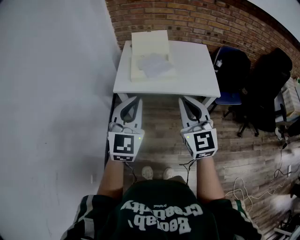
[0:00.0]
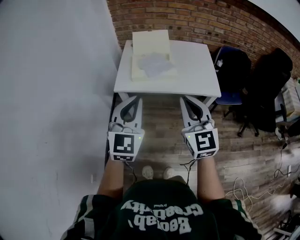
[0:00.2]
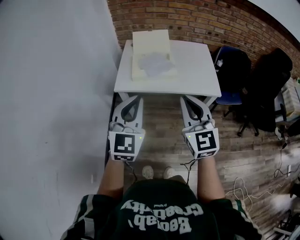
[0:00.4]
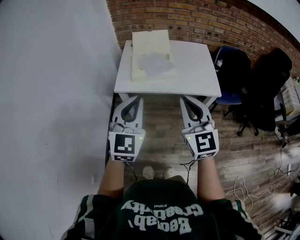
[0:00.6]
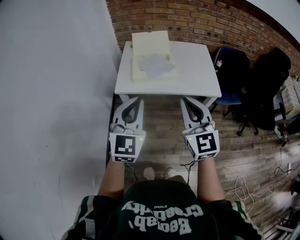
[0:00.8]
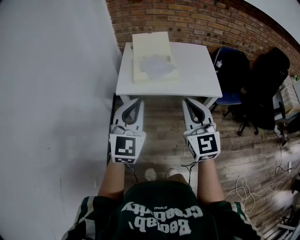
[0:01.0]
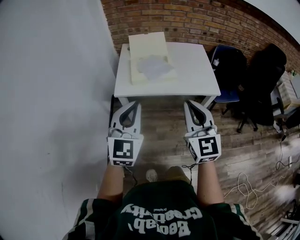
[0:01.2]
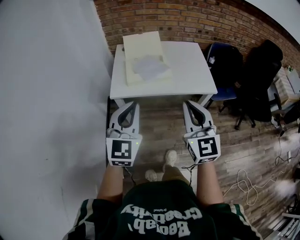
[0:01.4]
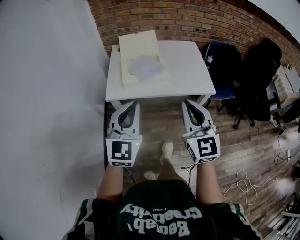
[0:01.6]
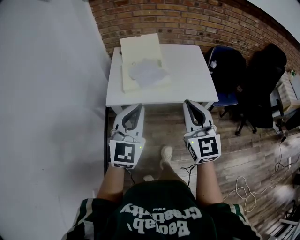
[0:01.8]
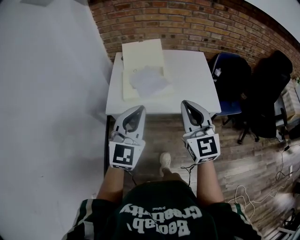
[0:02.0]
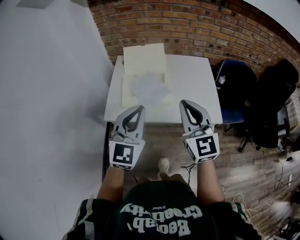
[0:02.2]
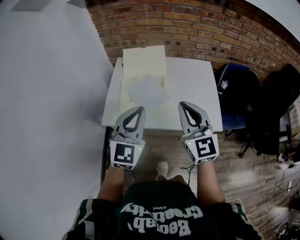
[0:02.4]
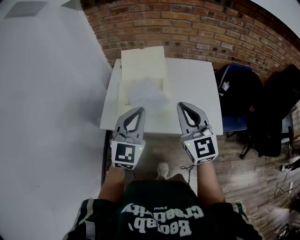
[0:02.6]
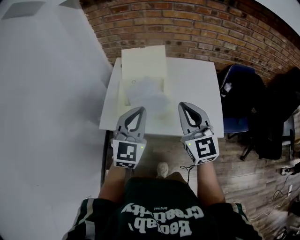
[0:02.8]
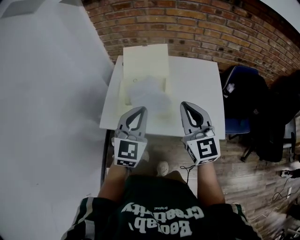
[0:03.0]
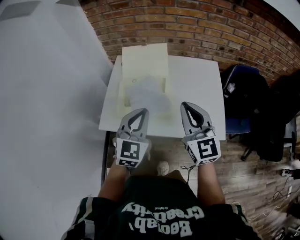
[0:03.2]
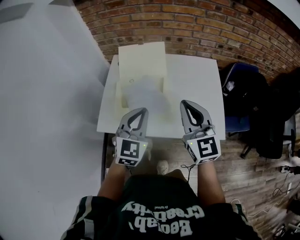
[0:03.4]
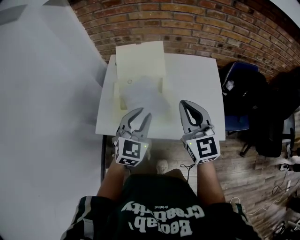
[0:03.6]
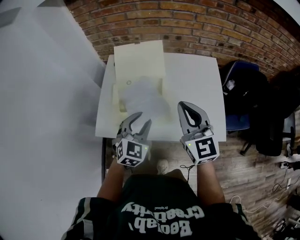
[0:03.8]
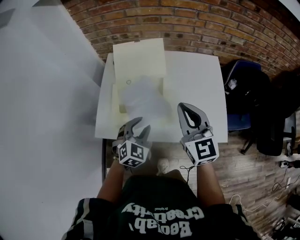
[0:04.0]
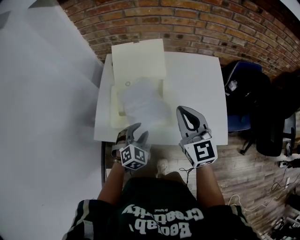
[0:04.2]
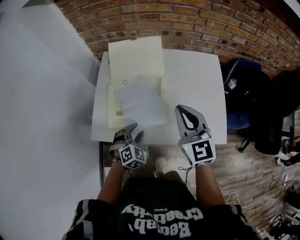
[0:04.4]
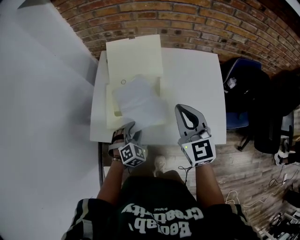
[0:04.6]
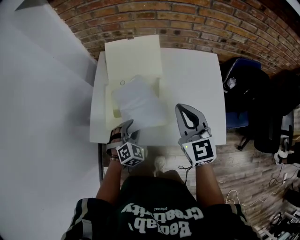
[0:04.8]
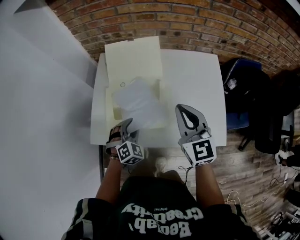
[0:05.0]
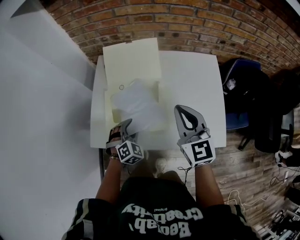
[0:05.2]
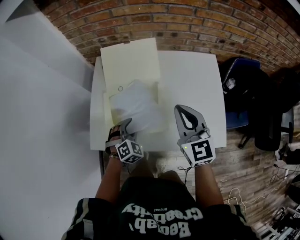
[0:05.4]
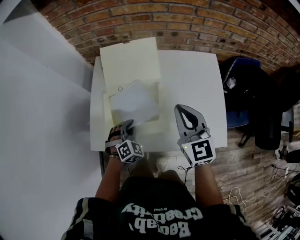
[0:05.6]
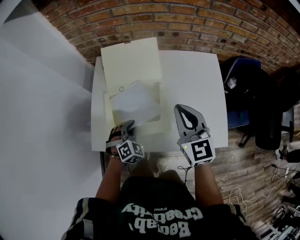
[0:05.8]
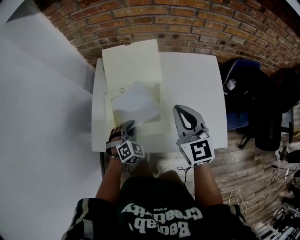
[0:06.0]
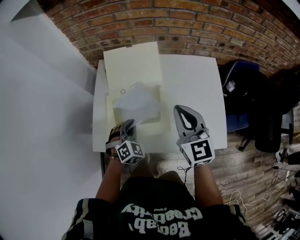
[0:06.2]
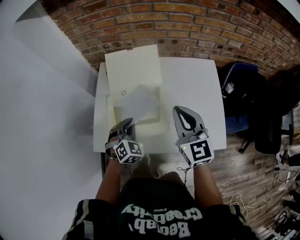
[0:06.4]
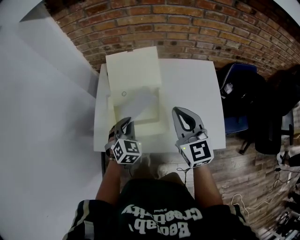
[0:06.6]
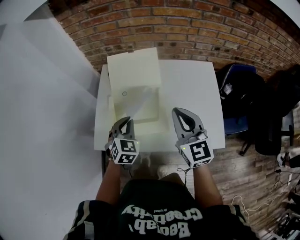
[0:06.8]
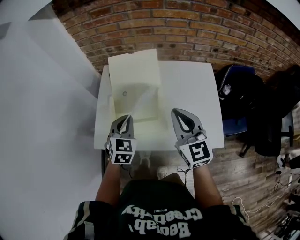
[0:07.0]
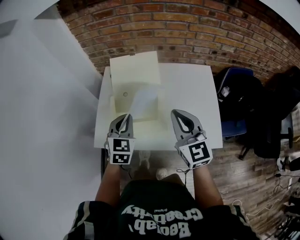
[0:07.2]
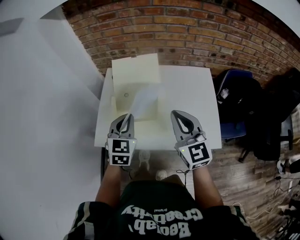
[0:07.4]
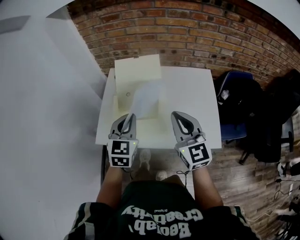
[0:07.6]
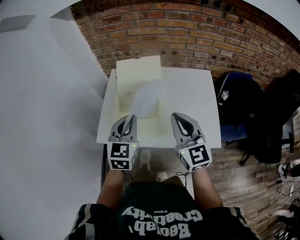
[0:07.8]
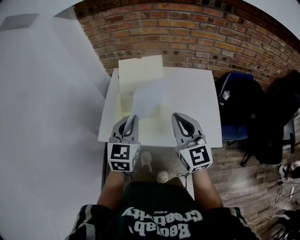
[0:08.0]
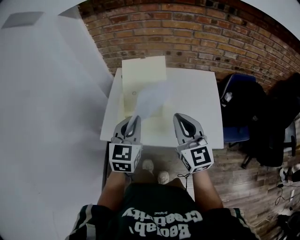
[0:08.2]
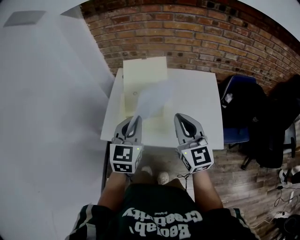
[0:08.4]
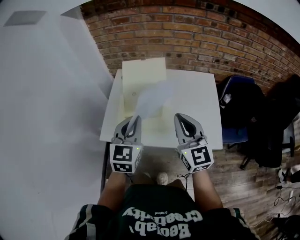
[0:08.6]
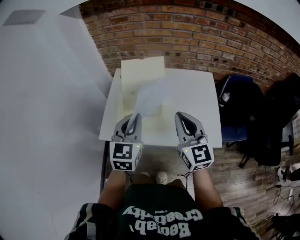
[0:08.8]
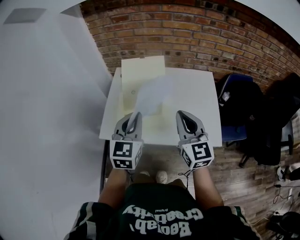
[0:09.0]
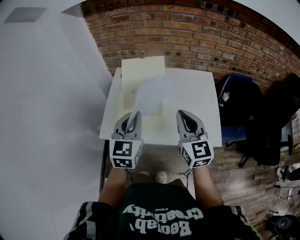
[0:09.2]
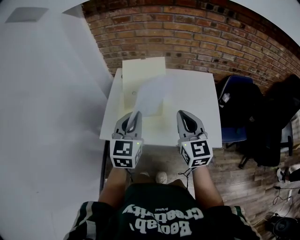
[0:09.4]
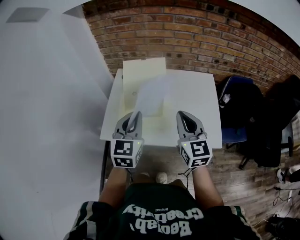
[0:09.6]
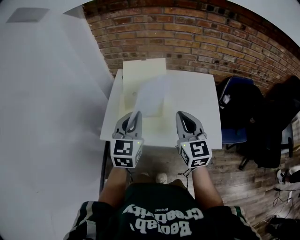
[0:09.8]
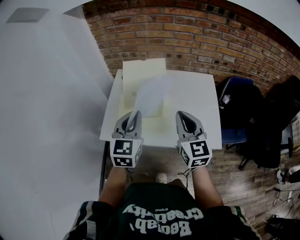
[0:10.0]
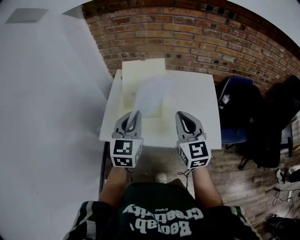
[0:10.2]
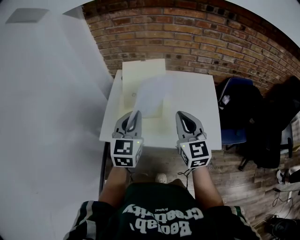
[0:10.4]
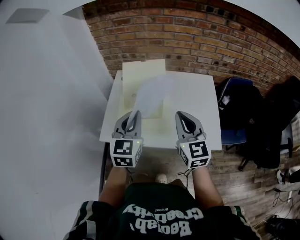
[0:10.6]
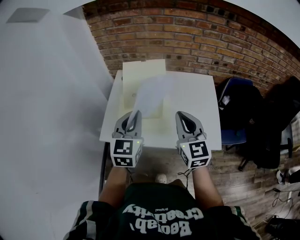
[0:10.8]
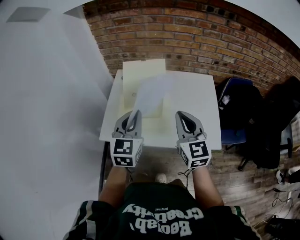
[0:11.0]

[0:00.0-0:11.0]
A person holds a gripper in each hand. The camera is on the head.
0:00.0 to 0:01.6: There are only small adjustments of the grippers.
0:01.6 to 0:03.2: The left gripper shifts about 30 cm forward and to the right, while the right gripper moves forward, about 30 cm.
0:03.2 to 0:04.8: The right gripper moves forward and downward, approximately 10 cm, while the left gripper goes some 20 cm downward, angles its fingers downward, by approximately 30 degrees, and opens its fingers.
0:04.8 to 0:06.2: The left gripper moves forward, about 5 cm, and closes.
0:06.2 to 0:07.8: The right gripper goes roughly 15 cm backward and upward; the left gripper heads upward and backward, covering roughly 20 cm, and changes its angle by some 40 degrees.
0:07.8 to 0:09.4: The grippers stay close to where they were, moving slightly.
0:09.4 to 0:11.0: Both grippers stay put.

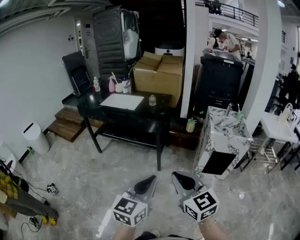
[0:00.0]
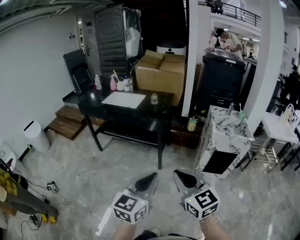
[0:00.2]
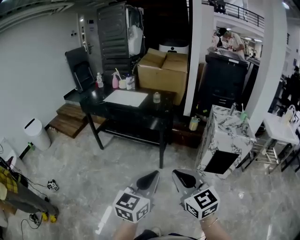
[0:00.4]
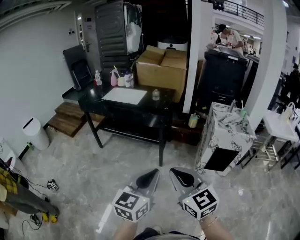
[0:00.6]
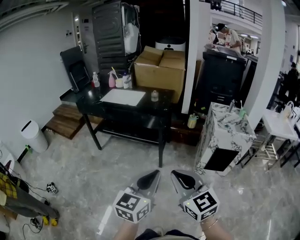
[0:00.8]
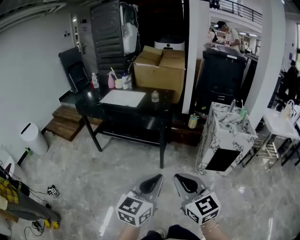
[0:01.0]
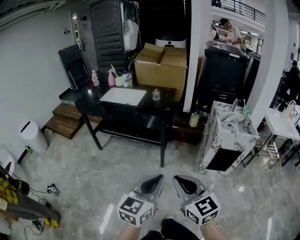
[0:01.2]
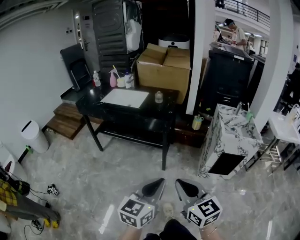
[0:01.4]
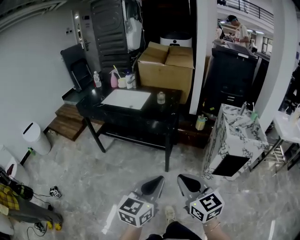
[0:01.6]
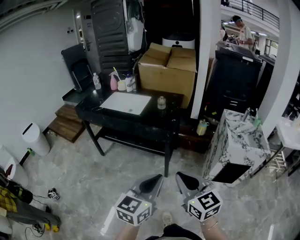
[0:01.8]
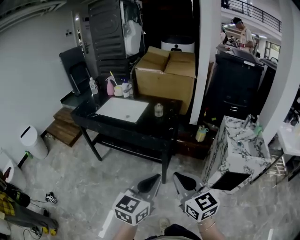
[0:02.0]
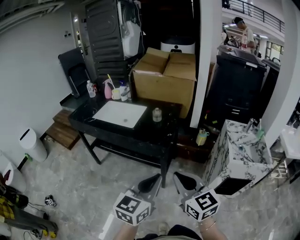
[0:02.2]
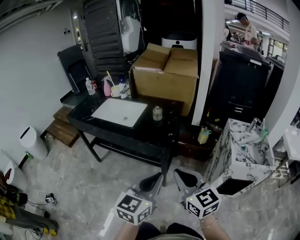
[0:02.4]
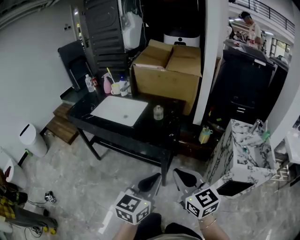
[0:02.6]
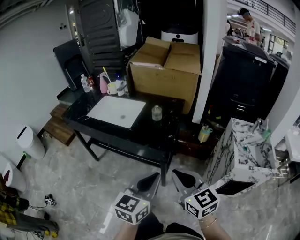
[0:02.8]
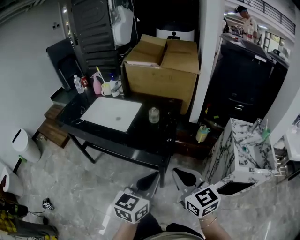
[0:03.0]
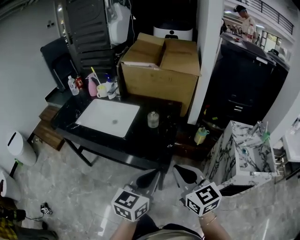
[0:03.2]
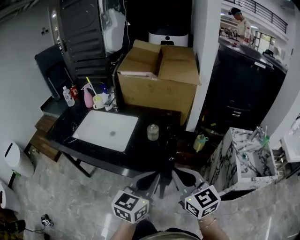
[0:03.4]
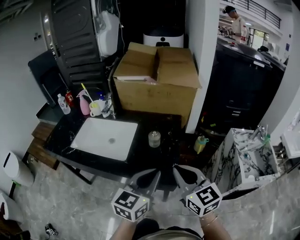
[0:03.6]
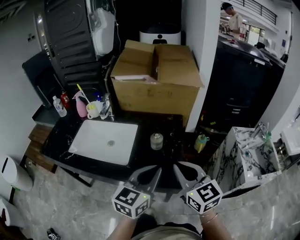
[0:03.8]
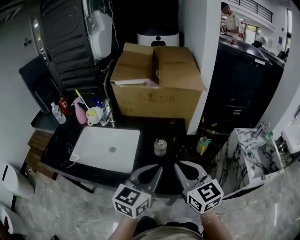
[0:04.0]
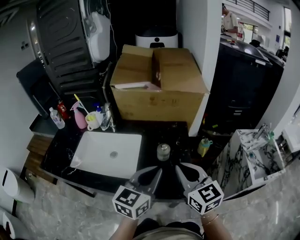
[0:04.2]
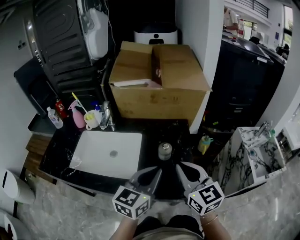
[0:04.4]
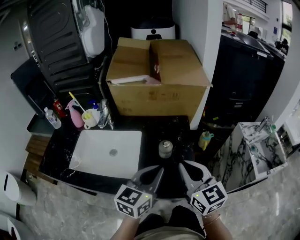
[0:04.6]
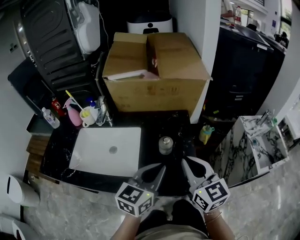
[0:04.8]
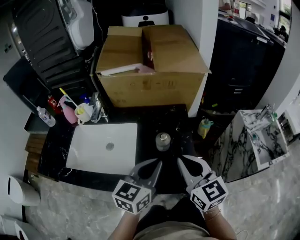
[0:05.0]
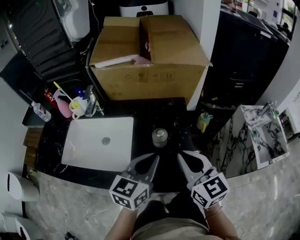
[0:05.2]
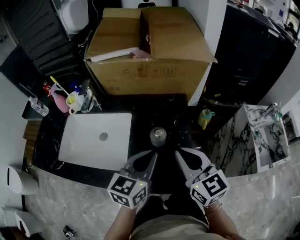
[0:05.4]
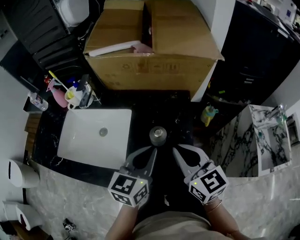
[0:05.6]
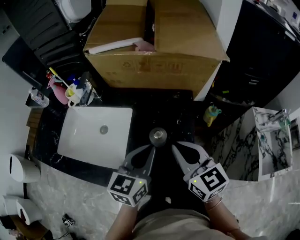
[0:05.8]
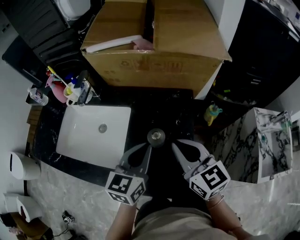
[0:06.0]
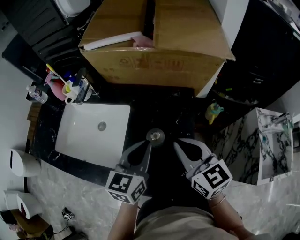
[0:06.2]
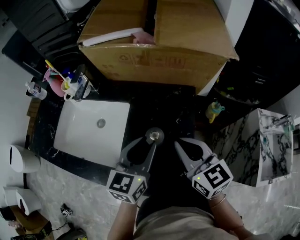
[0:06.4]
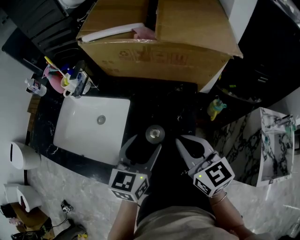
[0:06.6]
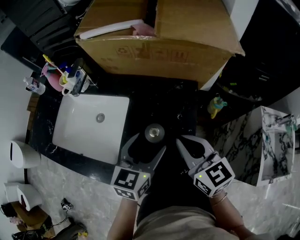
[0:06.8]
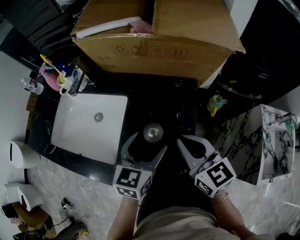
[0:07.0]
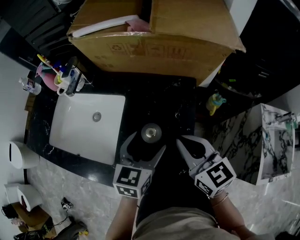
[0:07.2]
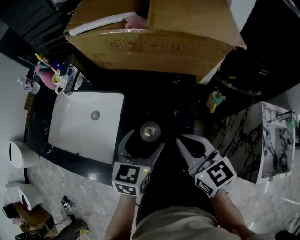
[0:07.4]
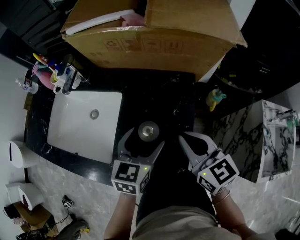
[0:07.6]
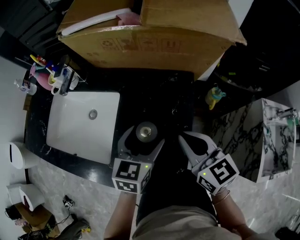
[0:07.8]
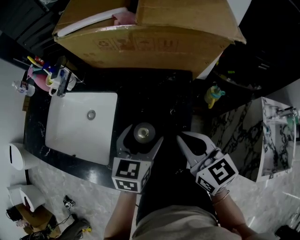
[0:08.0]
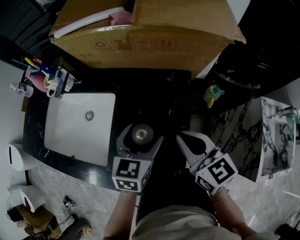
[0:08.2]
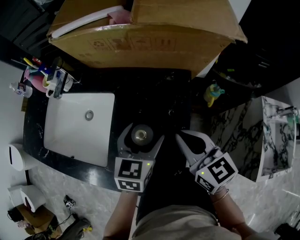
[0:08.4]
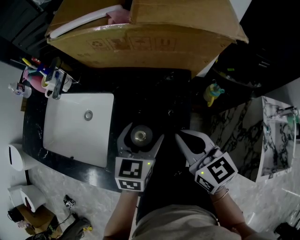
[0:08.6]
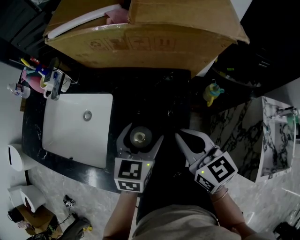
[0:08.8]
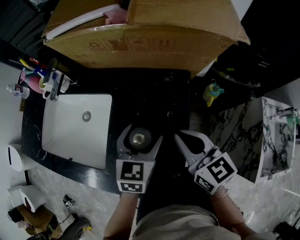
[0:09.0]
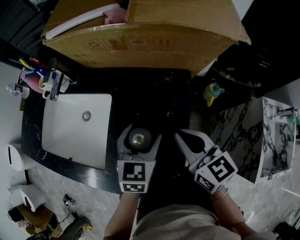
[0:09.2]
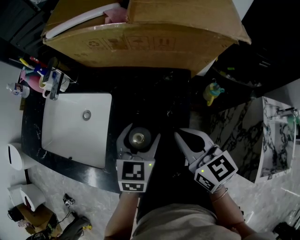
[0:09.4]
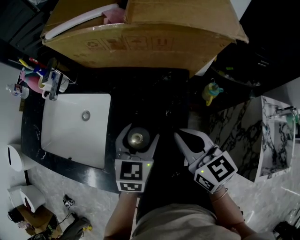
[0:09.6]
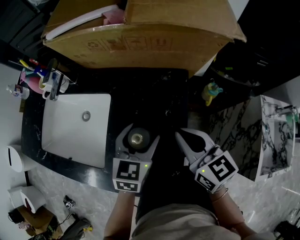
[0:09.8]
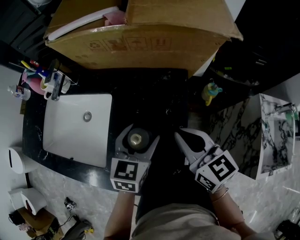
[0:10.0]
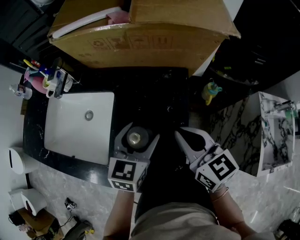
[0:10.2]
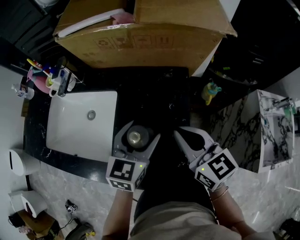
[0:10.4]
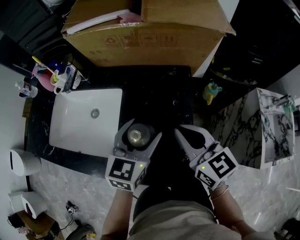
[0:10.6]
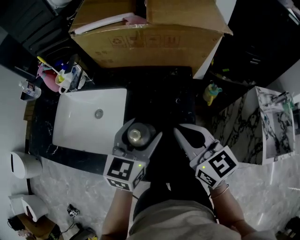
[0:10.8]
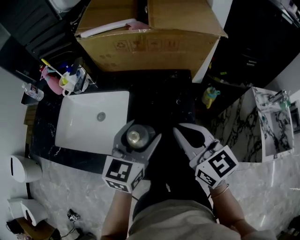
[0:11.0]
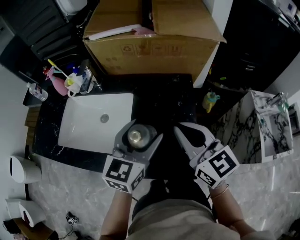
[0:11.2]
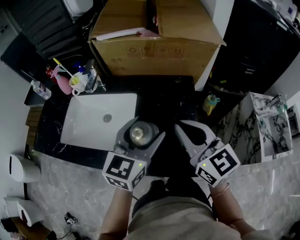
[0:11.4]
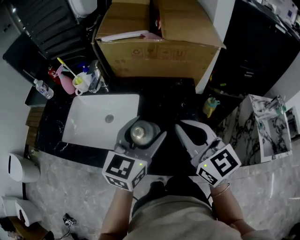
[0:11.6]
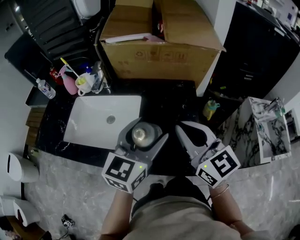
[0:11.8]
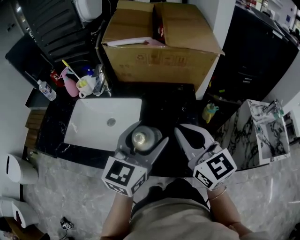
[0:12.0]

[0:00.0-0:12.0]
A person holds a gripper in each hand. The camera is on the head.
0:00.0 to 0:01.6: Both grippers travel together forward, roughly 15 cm.
0:01.6 to 0:03.0: The two grippers go approximately 35 cm forward.
0:03.0 to 0:04.4: Both grippers move forward and to the left, approximately 30 cm.
0:04.4 to 0:06.0: The grippers both shift forward and downward by about 15 cm.
0:06.0 to 0:07.6: Both grippers move downward, some 5 cm. The left gripper opens.
0:07.6 to 0:09.0: The grippers stay close to where they were, moving slightly.
0:09.0 to 0:10.4: The left gripper ends up some 5 cm from where it was.
0:10.4 to 0:12.0: Both grippers travel together upward, backward and to the left, some 20 cm. The left gripper rotates approximately 20 degrees.

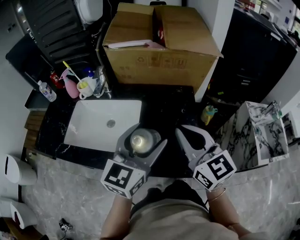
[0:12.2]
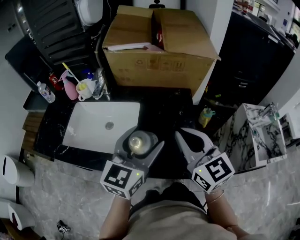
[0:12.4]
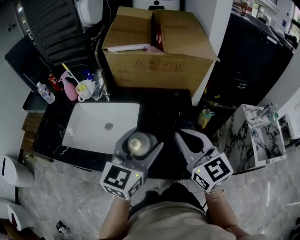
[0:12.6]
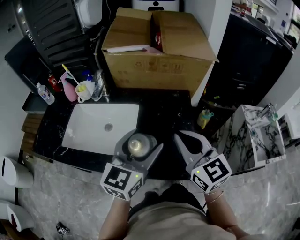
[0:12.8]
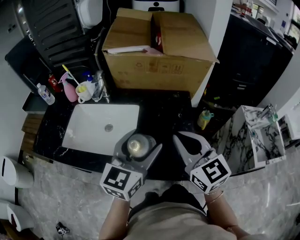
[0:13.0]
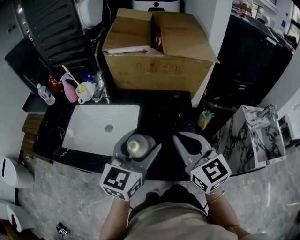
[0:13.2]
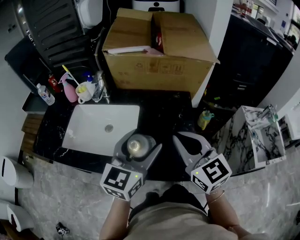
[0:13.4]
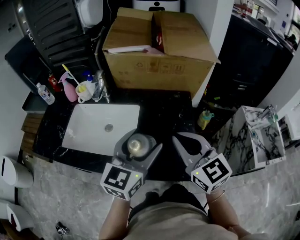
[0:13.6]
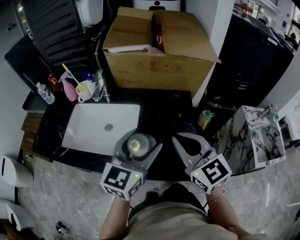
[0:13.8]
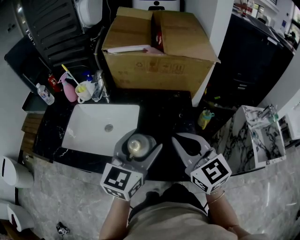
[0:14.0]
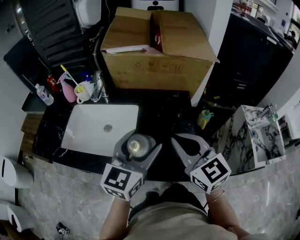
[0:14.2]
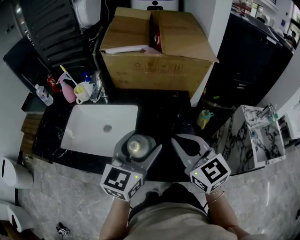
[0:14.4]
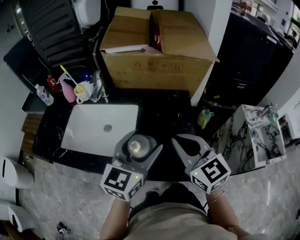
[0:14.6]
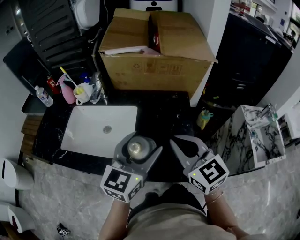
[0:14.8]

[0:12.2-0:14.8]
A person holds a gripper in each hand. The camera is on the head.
0:12.2 to 0:14.8: The grippers make only small movements.
